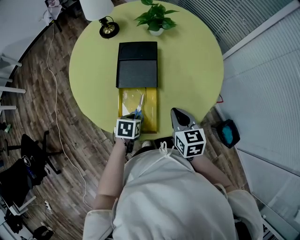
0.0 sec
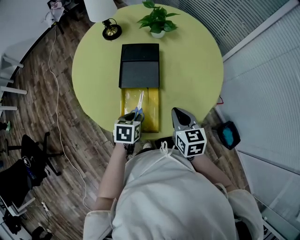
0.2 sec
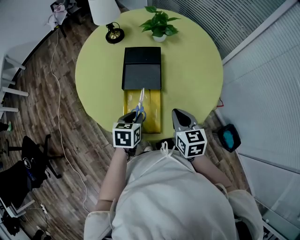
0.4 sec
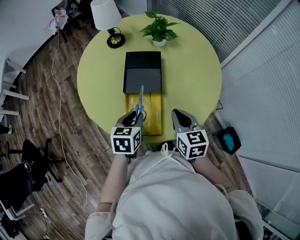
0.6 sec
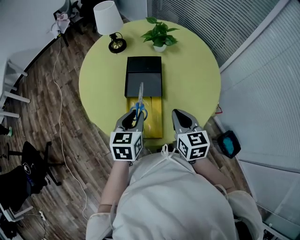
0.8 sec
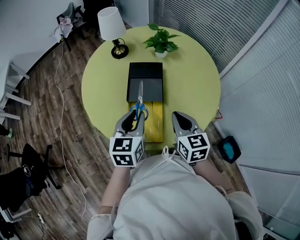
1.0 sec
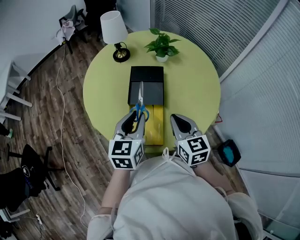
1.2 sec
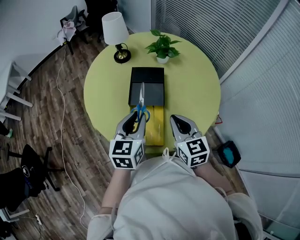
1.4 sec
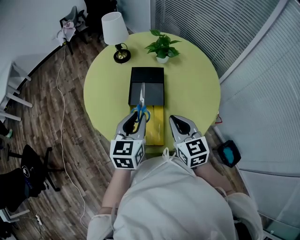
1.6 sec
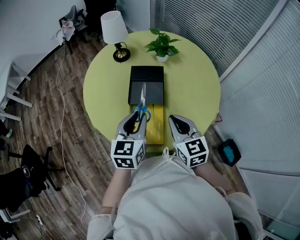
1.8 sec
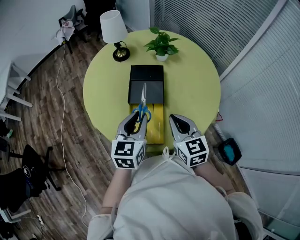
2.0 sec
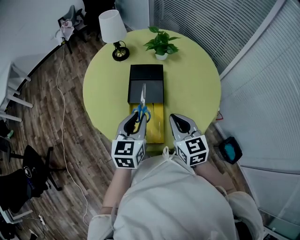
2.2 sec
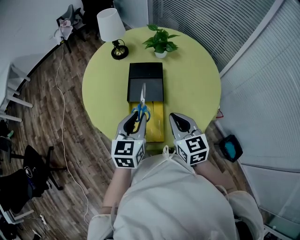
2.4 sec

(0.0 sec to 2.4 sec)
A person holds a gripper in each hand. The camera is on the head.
0.0 sec - 1.2 sec: The right gripper travels upward by some 10 cm. The left gripper heads upward, covering about 25 cm, and tilts its fingers approximately 50 degrees upward.
1.2 sec - 2.4 sec: The grippers make only small movements.

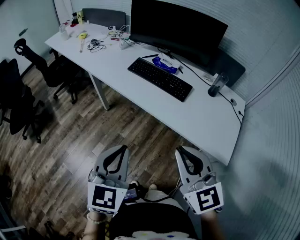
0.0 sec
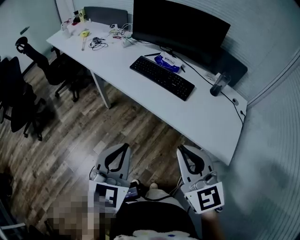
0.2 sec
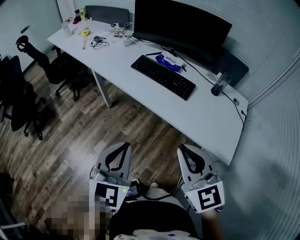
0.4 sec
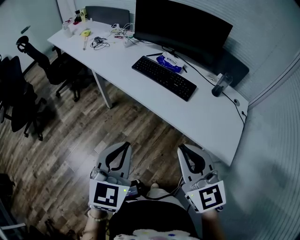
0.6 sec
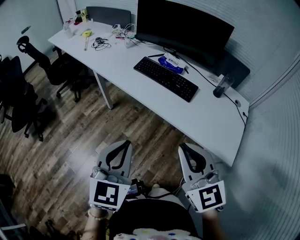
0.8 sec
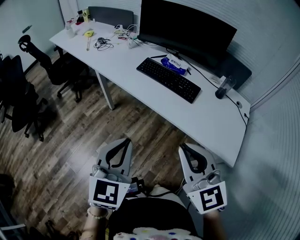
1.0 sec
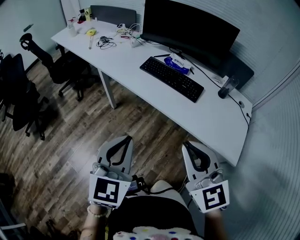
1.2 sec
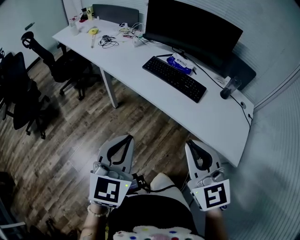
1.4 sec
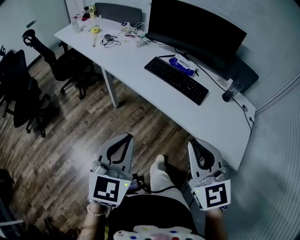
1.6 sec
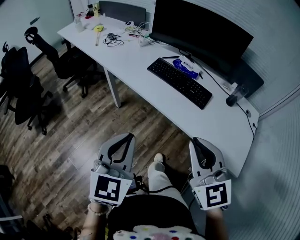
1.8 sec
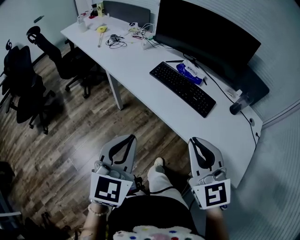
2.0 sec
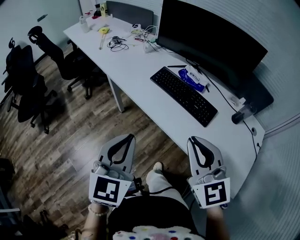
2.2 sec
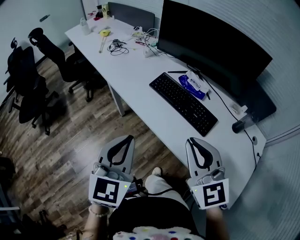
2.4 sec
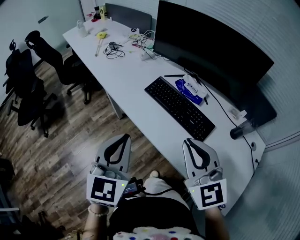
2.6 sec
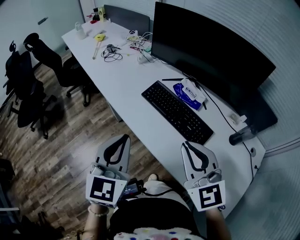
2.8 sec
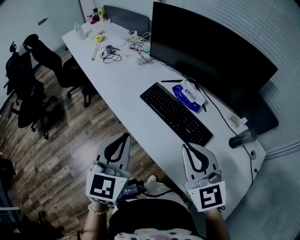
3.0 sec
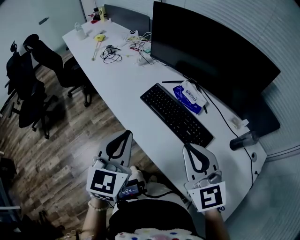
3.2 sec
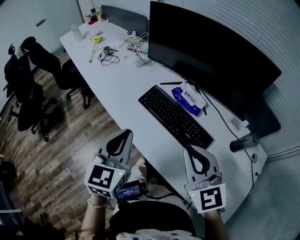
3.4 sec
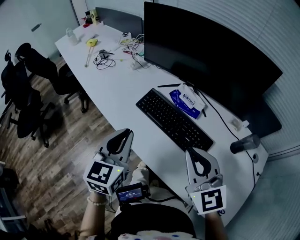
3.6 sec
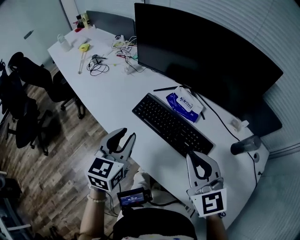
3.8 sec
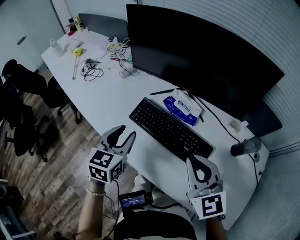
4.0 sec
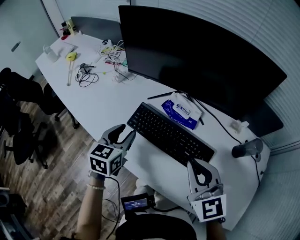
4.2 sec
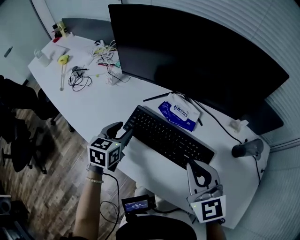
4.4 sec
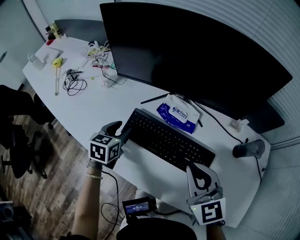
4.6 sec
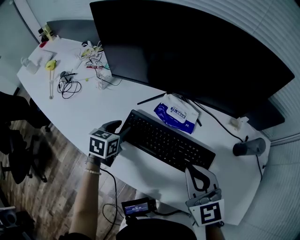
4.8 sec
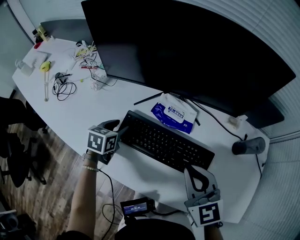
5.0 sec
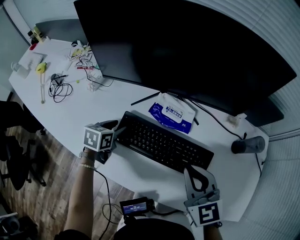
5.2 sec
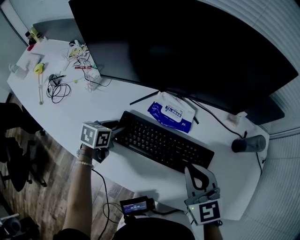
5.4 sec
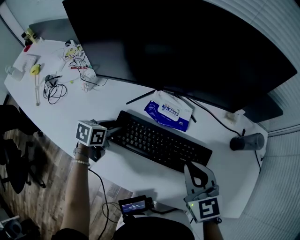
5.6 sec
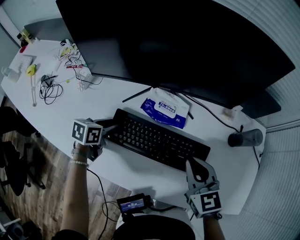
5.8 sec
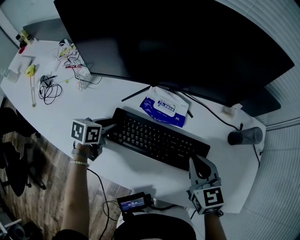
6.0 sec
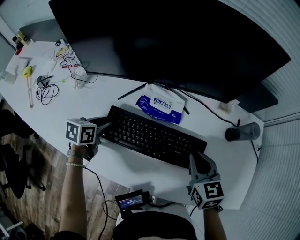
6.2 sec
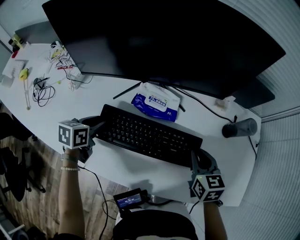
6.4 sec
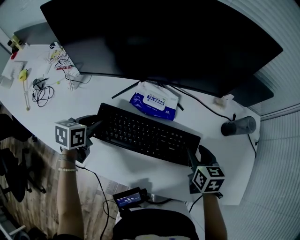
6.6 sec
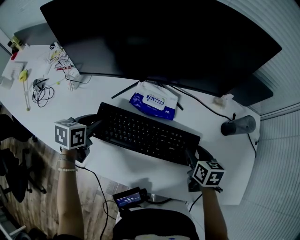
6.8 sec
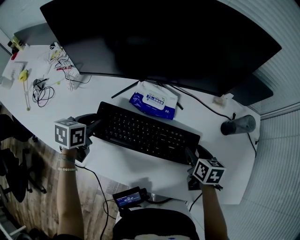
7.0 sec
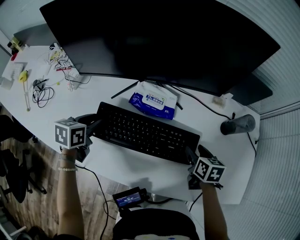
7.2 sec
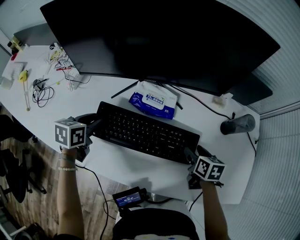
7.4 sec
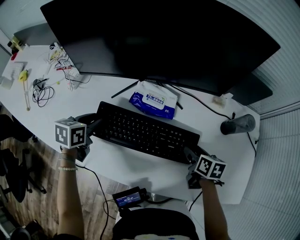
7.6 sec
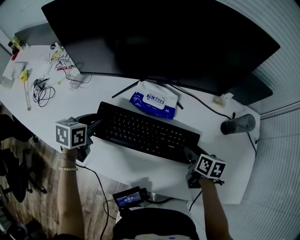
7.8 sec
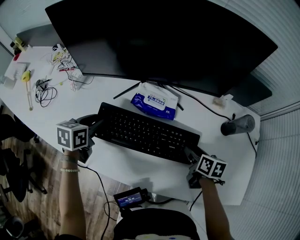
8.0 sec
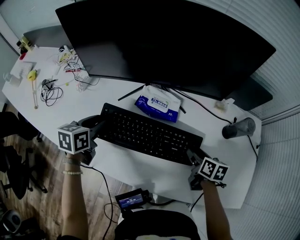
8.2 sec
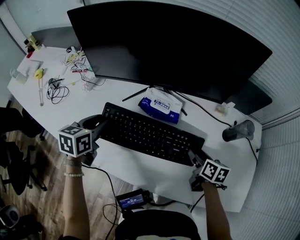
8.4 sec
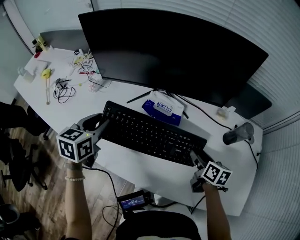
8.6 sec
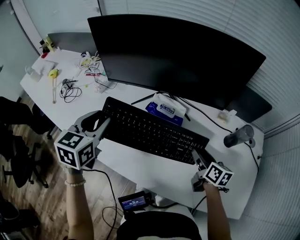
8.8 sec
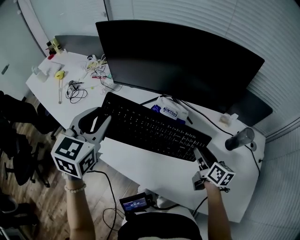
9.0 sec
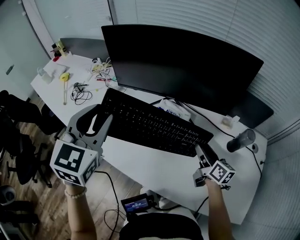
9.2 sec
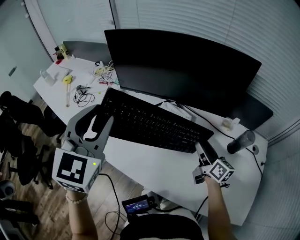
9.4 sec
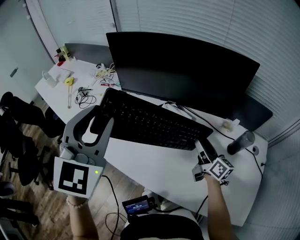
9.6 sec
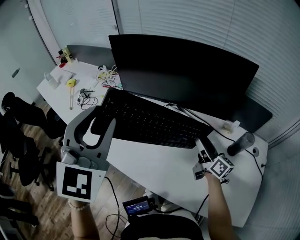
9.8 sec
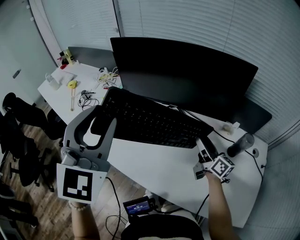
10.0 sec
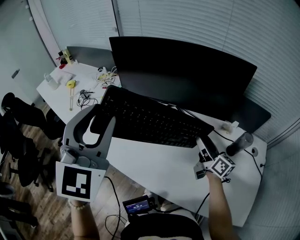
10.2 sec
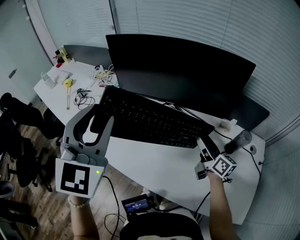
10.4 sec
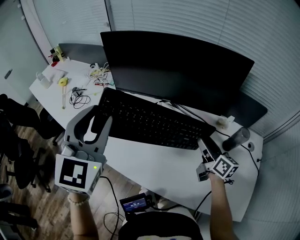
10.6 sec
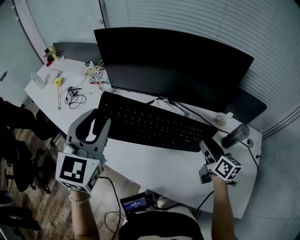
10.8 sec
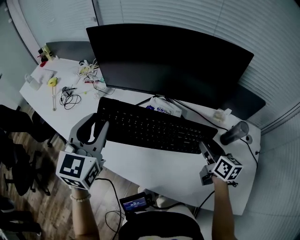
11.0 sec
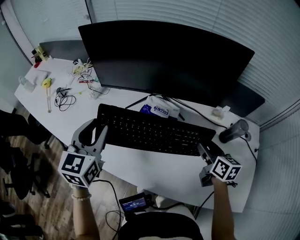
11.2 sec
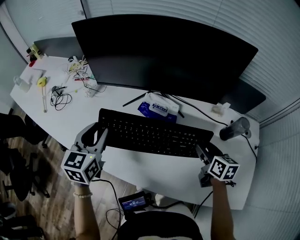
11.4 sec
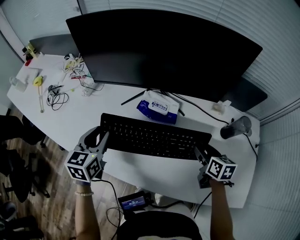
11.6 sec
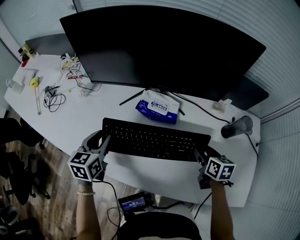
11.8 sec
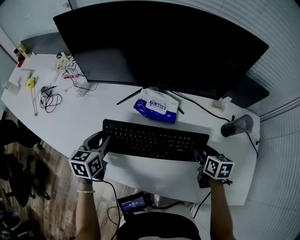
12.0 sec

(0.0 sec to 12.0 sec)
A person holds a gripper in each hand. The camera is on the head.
0.0 sec - 1.6 sec: The right gripper changes place by roughly 5 cm. Meanwhile the left gripper travels to the left by about 5 cm.
1.6 sec - 3.0 sec: The two grippers go some 25 cm forward.
3.0 sec - 4.4 sec: The left gripper is displaced forward and downward by roughly 30 cm, changes its angle by some 30 degrees, and opens. The right gripper is displaced forward and downward by some 15 cm, and rotates approximately 20 degrees.
4.4 sec - 6.0 sec: The grippers both shift downward by approximately 10 cm. The left gripper rotates approximately 30 degrees; the right gripper swivels some 30 degrees.
6.0 sec - 7.6 sec: The left gripper travels upward by some 5 cm. Meanwhile the right gripper heads downward and to the right, covering about 15 cm, rotates about 40 degrees, and opens.
7.6 sec - 9.0 sec: The left gripper travels upward by roughly 25 cm, and changes its angle by approximately 40 degrees. The right gripper moves upward, approximately 10 cm, and tips its fingers upward by approximately 30 degrees.
9.0 sec - 10.4 sec: The left gripper shifts about 15 cm upward and backward, and changes its angle by roughly 20 degrees, while the right gripper is displaced upward by roughly 5 cm.
10.4 sec - 12.0 sec: The right gripper is displaced downward by approximately 15 cm, and tilts its fingers approximately 50 degrees downward. Meanwhile the left gripper moves downward, about 35 cm, and angles its fingers downward, by some 30 degrees.

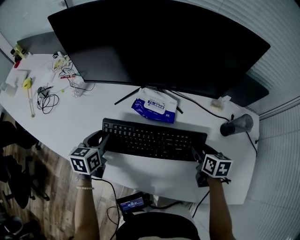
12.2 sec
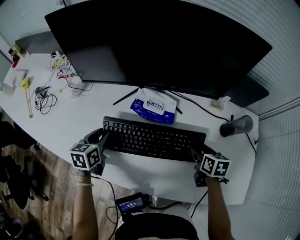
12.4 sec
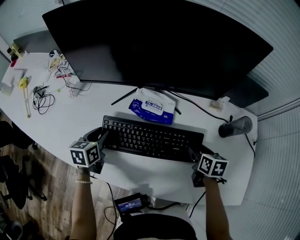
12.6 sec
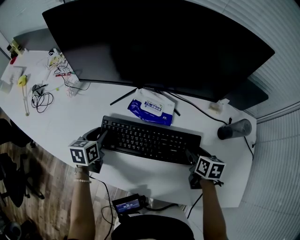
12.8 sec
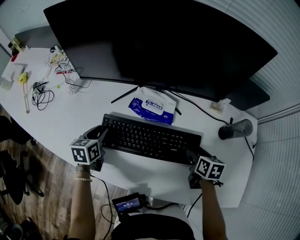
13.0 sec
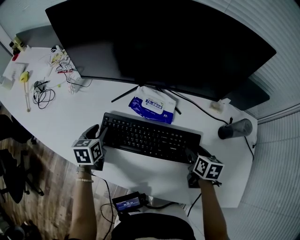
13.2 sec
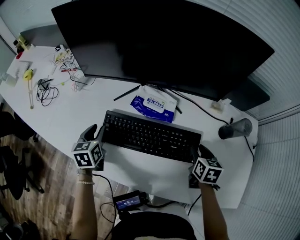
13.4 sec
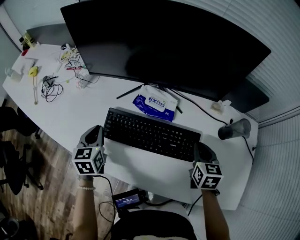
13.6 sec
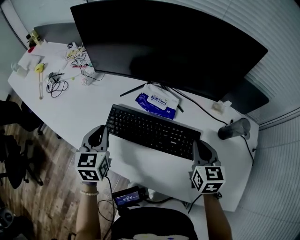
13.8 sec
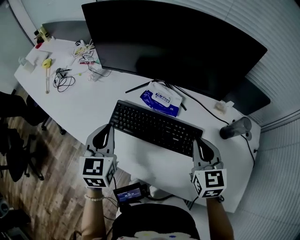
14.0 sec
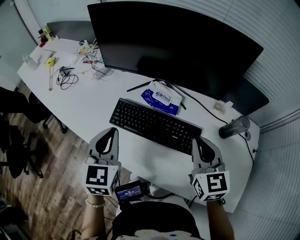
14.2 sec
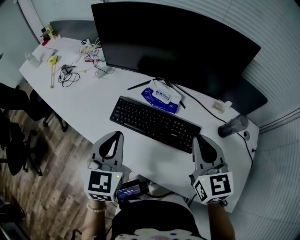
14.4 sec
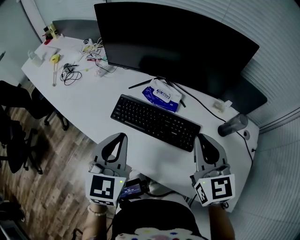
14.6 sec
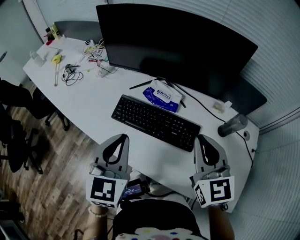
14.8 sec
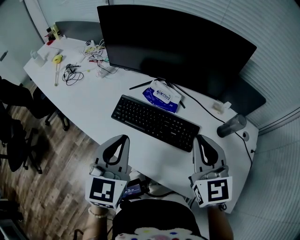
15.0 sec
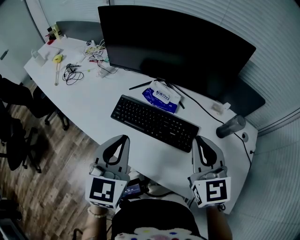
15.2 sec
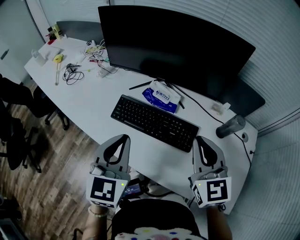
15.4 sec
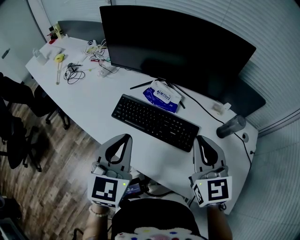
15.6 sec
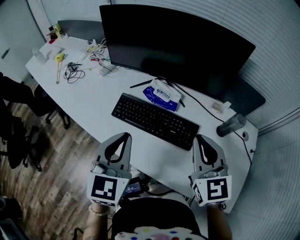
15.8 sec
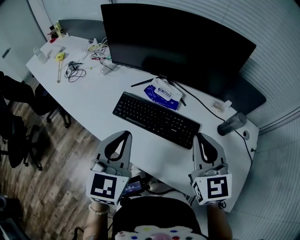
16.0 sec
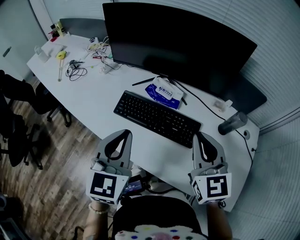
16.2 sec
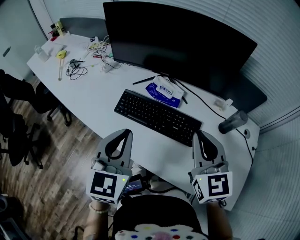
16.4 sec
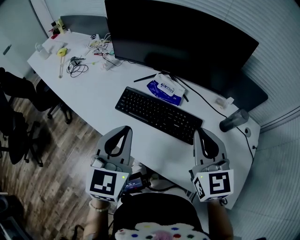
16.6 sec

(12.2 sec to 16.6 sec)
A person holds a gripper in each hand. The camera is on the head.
12.2 sec - 13.6 sec: The right gripper moves upward, approximately 5 cm, rotates roughly 20 degrees, and closes up, while the left gripper closes.
13.6 sec - 15.2 sec: The left gripper heads upward, backward and to the right, covering approximately 30 cm, and changes its angle by some 20 degrees. The right gripper heads upward, covering approximately 20 cm, and swivels some 40 degrees.
15.2 sec - 16.6 sec: The two grippers keep their place.

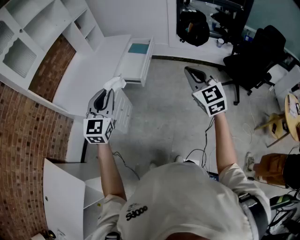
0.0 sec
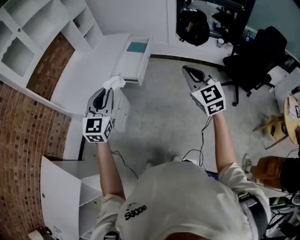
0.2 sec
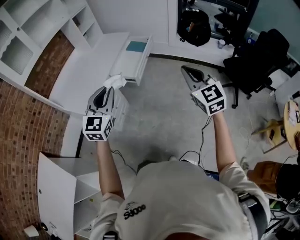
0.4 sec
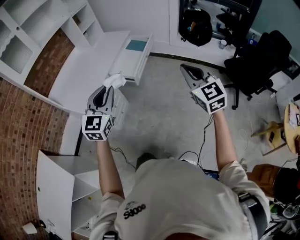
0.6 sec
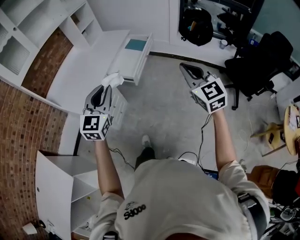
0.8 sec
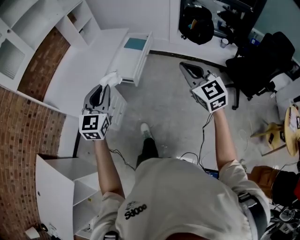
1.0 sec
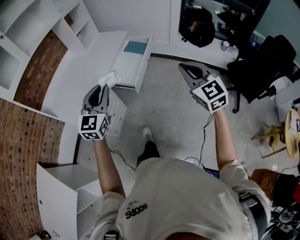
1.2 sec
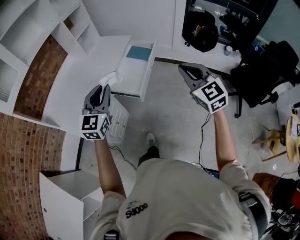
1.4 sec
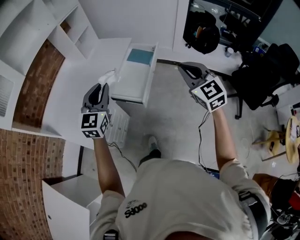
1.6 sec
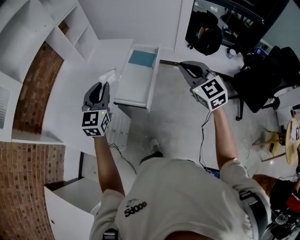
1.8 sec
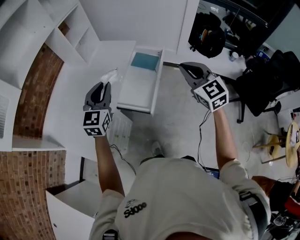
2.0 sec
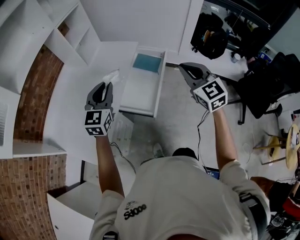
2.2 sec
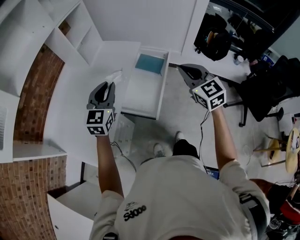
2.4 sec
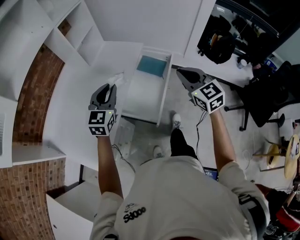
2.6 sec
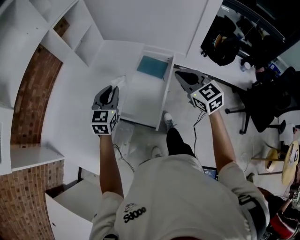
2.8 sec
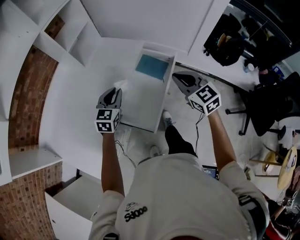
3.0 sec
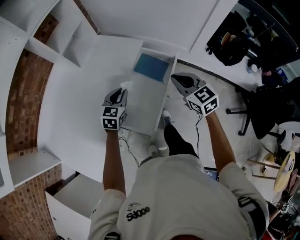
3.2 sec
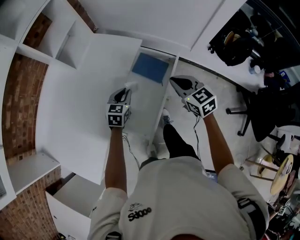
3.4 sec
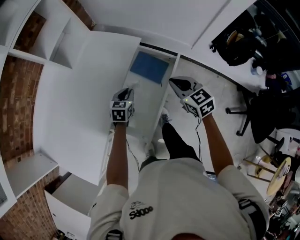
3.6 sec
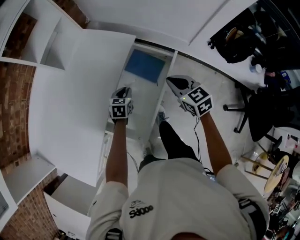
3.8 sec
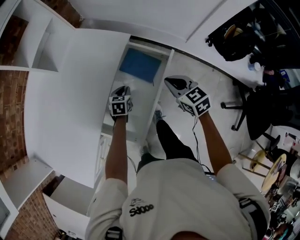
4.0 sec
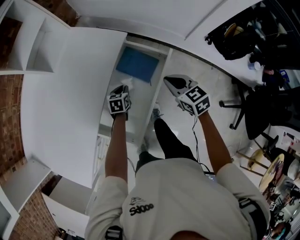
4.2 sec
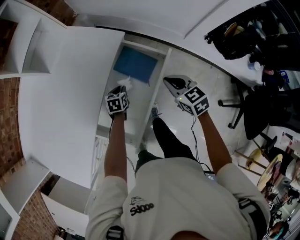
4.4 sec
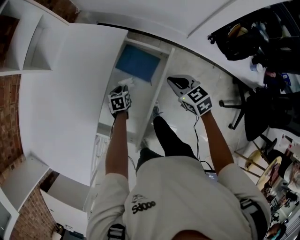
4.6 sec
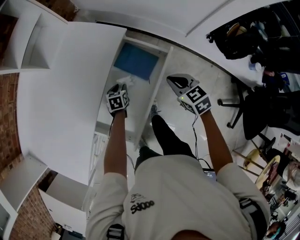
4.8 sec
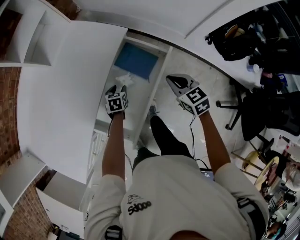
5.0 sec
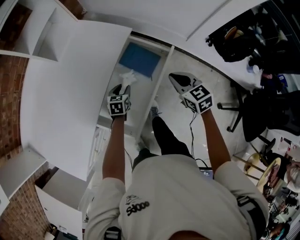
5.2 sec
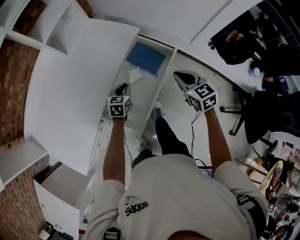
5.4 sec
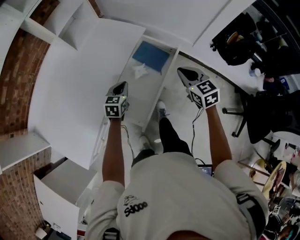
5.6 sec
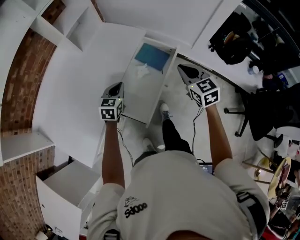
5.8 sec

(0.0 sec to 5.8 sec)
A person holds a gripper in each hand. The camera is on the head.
0.0 sec - 1.4 sec: The two grippers go about 25 cm forward.
1.4 sec - 2.8 sec: The grippers both shift forward by some 35 cm.
2.8 sec - 4.4 sec: The left gripper moves downward and forward, approximately 40 cm, and angles its fingers downward, by about 40 degrees. The right gripper travels downward, forward and to the right by some 35 cm, and changes its angle by some 30 degrees.
4.4 sec - 5.8 sec: The right gripper heads upward and backward, covering approximately 20 cm. The left gripper goes some 30 cm upward, backward and to the left, rotates about 30 degrees, and opens and closes again.
